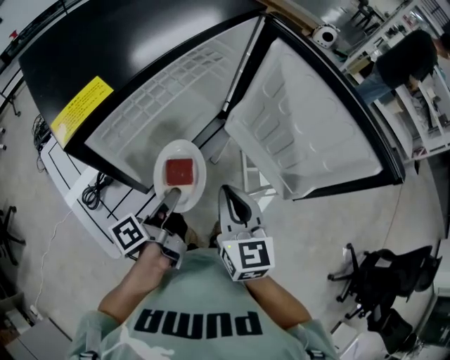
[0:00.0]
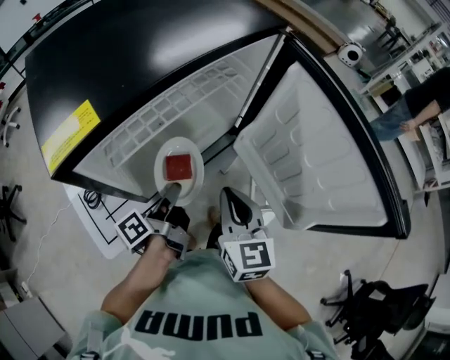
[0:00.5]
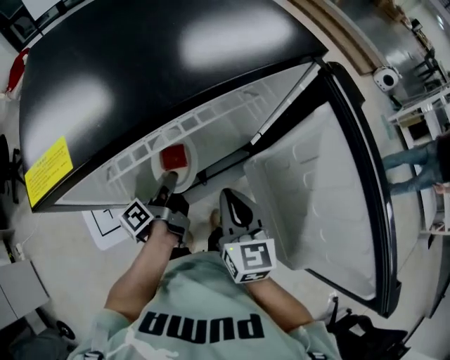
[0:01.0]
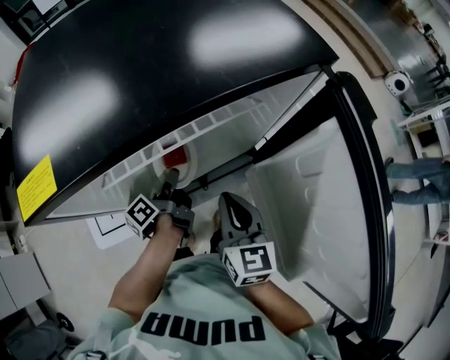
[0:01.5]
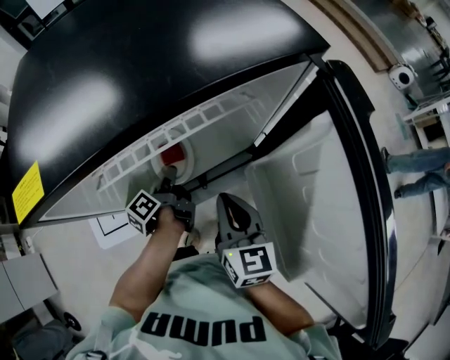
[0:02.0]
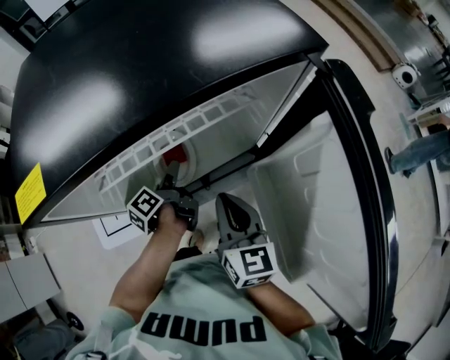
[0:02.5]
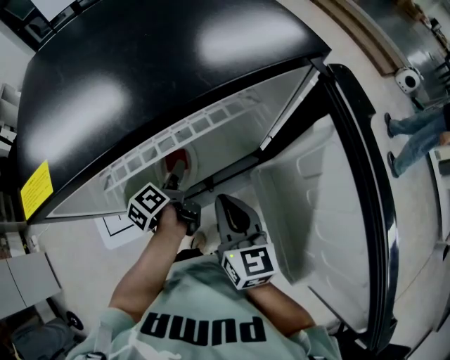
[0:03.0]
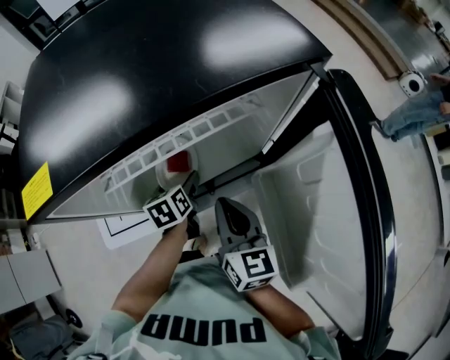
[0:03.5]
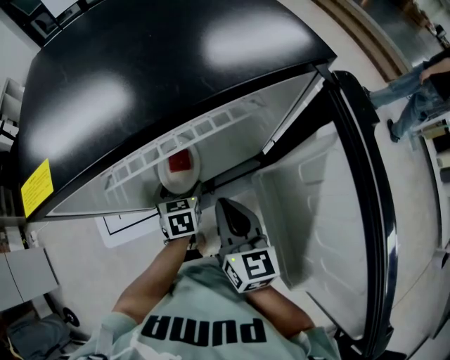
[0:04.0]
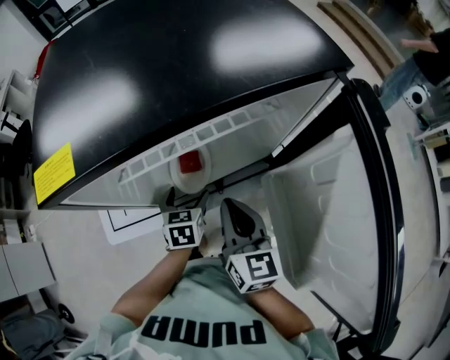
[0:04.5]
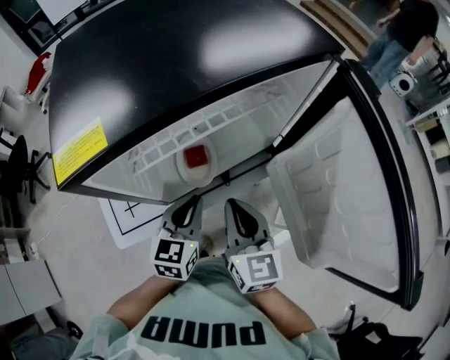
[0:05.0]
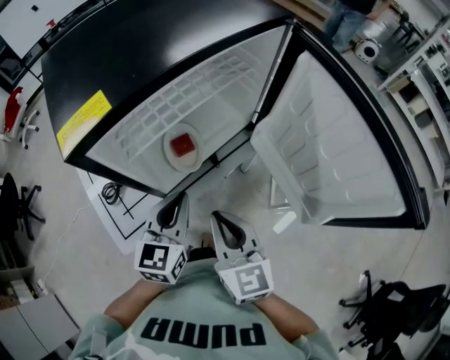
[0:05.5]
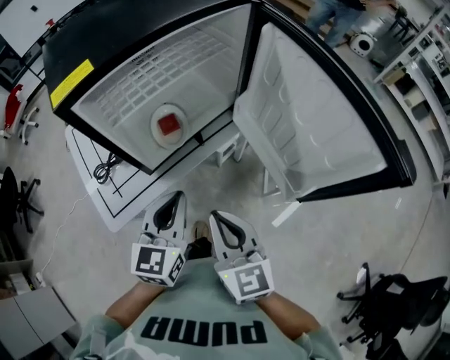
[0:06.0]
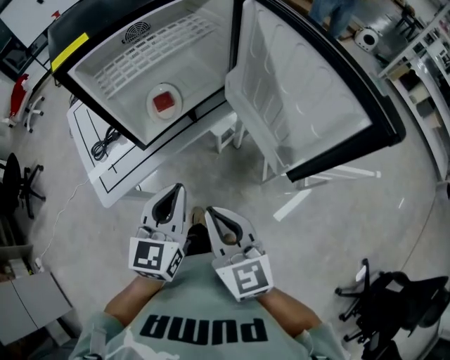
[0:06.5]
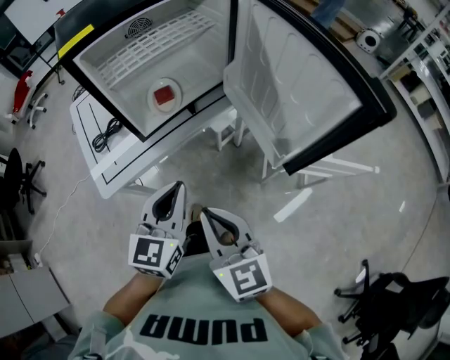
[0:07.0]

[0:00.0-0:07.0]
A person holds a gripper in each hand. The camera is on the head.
0:00.0 to 0:02.0: The right gripper changes place by roughly 15 cm, and turns by some 30 degrees, while the left gripper changes place by approximately 20 cm, and rotates some 40 degrees.
0:02.0 to 0:03.5: The left gripper rotates around the line of its fingers by some 50 degrees, clockwise from behind, and opens up.
0:03.5 to 0:05.0: The right gripper changes place by some 5 cm. Meanwhile the left gripper goes approximately 15 cm upward and backward, turns by about 40 degrees, and closes up.
0:05.0 to 0:07.0: Both grippers travel together backward, about 25 cm.

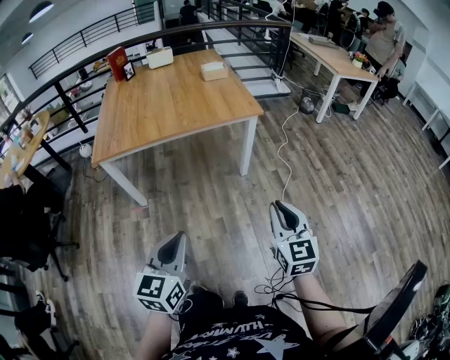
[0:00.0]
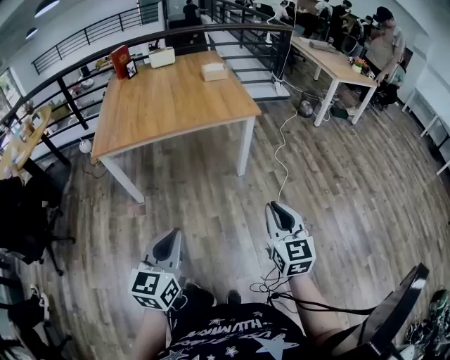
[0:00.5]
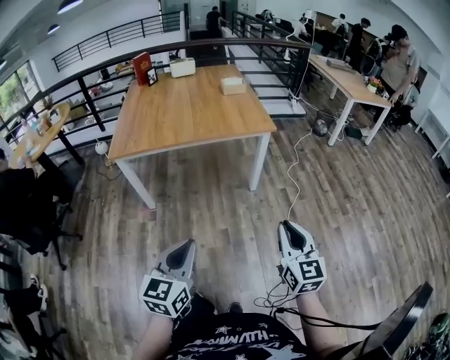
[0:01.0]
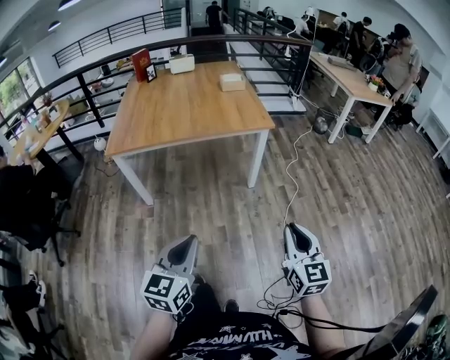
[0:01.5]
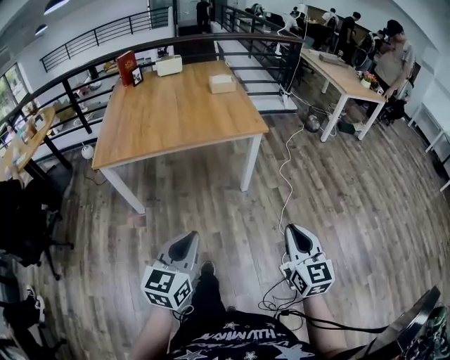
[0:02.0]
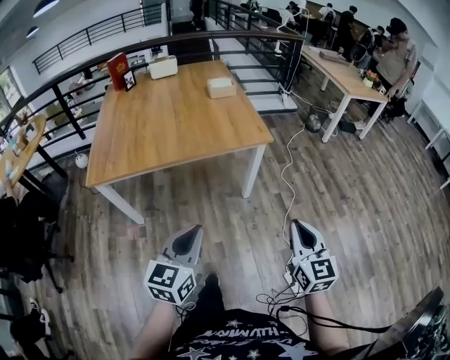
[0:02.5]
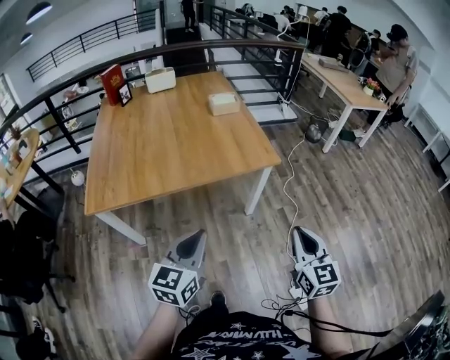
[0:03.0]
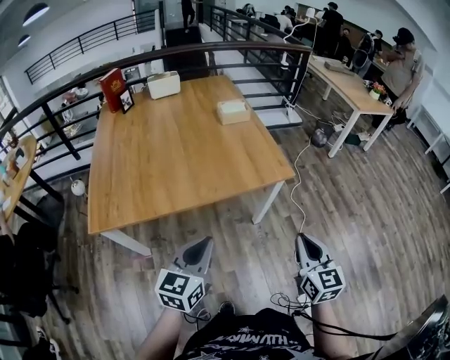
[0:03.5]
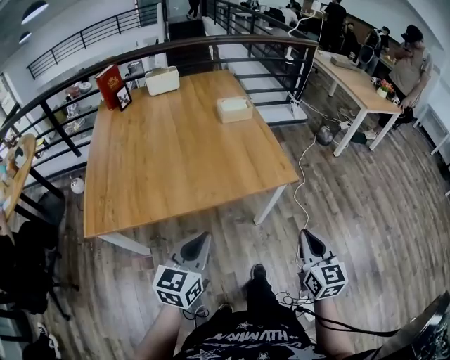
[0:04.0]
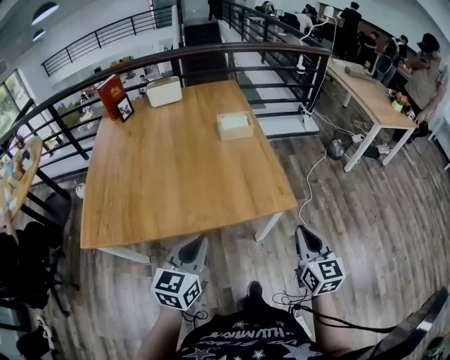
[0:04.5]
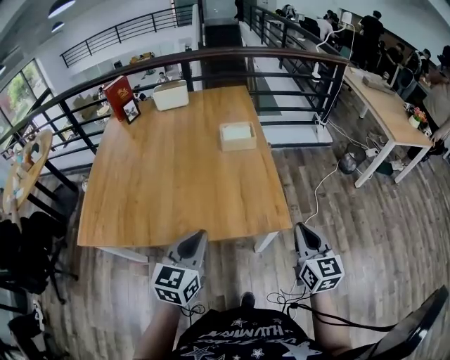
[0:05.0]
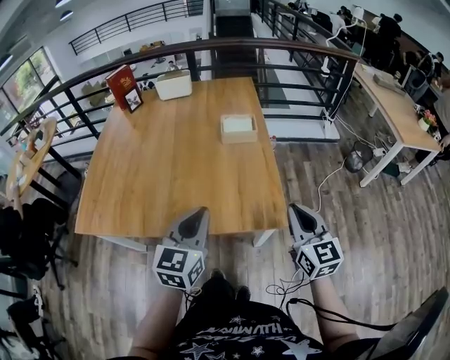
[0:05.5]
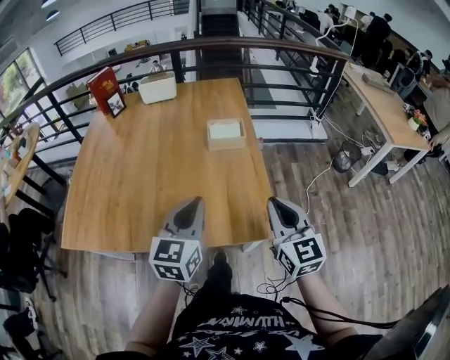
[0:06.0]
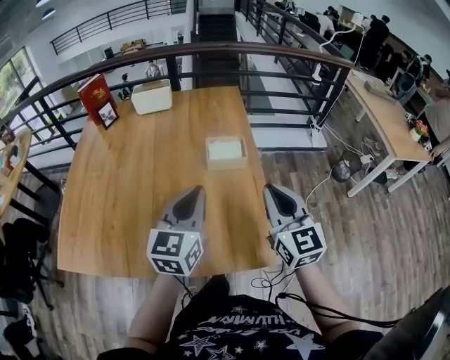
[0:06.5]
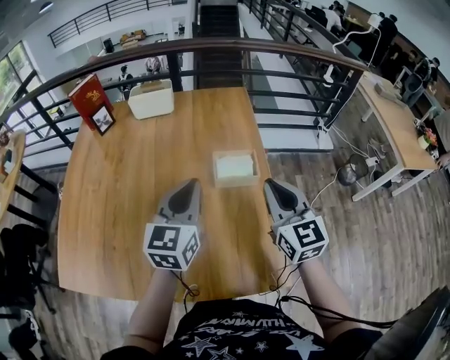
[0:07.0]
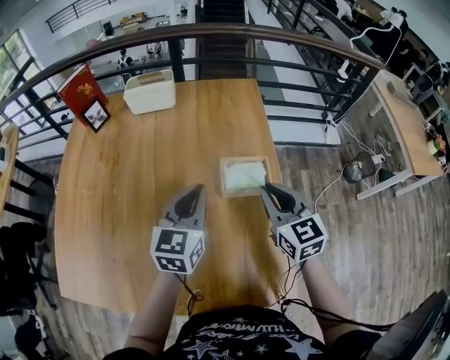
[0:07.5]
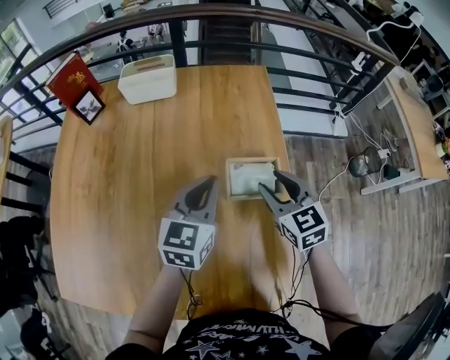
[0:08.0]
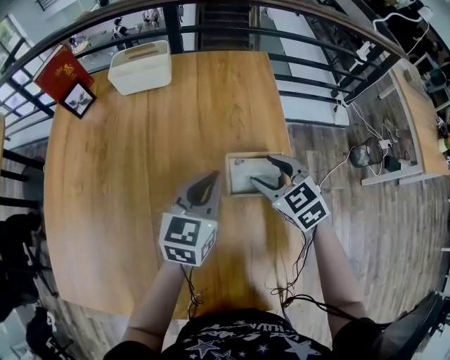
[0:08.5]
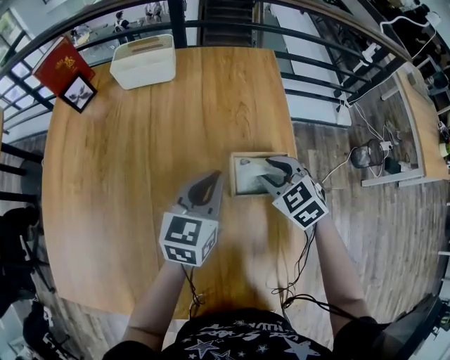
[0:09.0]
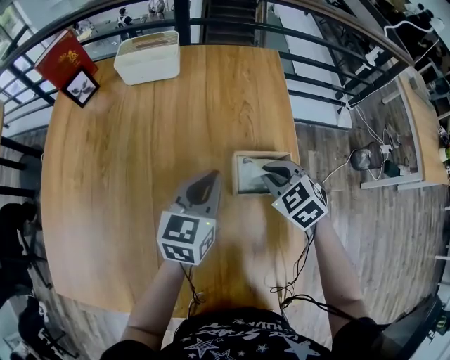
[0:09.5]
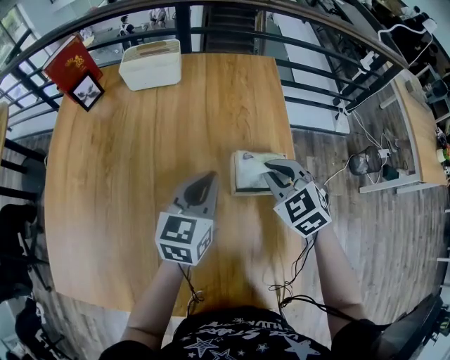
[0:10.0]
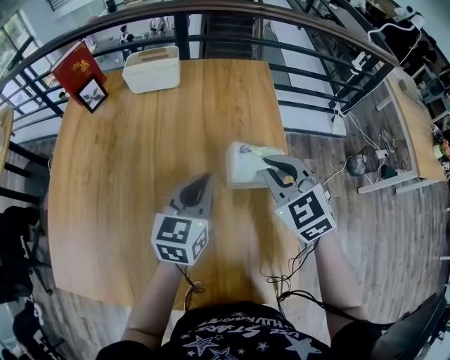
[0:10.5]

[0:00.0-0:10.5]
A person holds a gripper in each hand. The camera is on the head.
0:00.0 to 0:02.0: The left gripper moves forward, some 5 cm. The right gripper is displaced to the right by about 5 cm.
0:02.0 to 0:04.0: The two grippers travel together, forward, some 40 cm.
0:04.0 to 0:06.5: The pair of grippers is taken forward, about 50 cm. The right gripper swivels roughly 30 degrees.
0:06.5 to 0:08.5: Both grippers travel together forward and downward, approximately 40 cm. The right gripper points its fingers some 40 degrees further downward, and opens its fingers.
0:08.5 to 0:10.5: The right gripper moves upward and backward, some 10 cm, and closes up; the left gripper travels backward by some 5 cm.

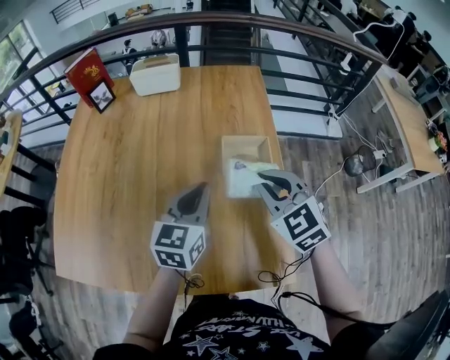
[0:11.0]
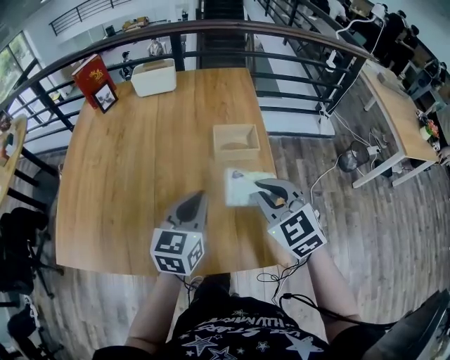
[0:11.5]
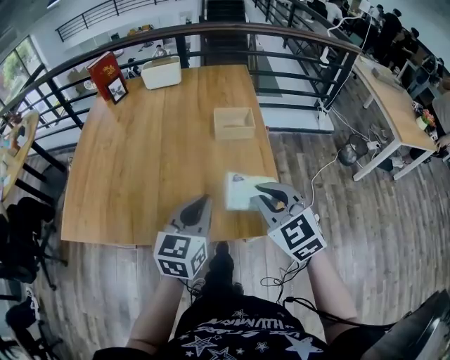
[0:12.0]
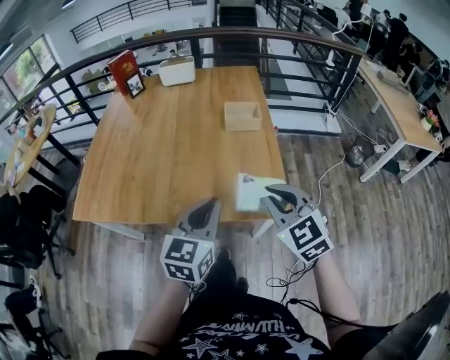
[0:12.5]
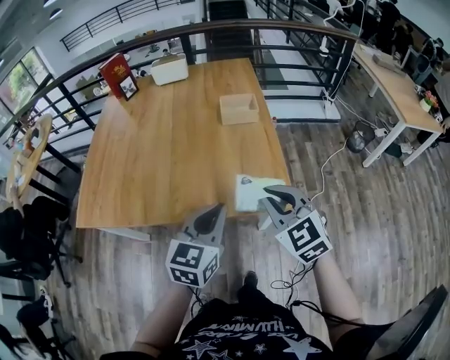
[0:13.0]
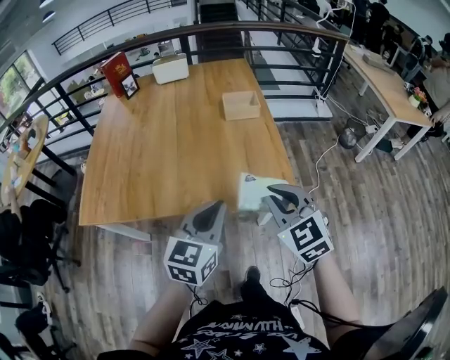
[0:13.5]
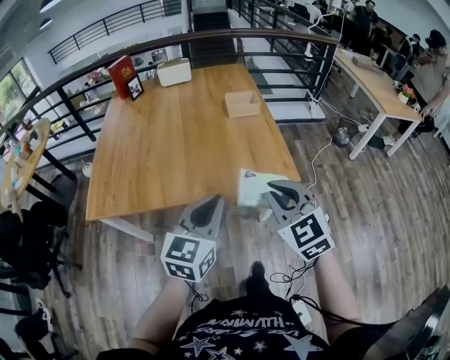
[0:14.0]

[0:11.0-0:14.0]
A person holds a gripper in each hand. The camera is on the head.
0:11.0 to 0:12.5: The grippers both shift backward by approximately 40 cm.
0:12.5 to 0:14.0: The two grippers go roughly 20 cm backward and to the left.

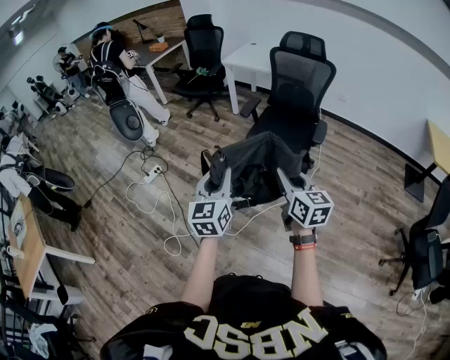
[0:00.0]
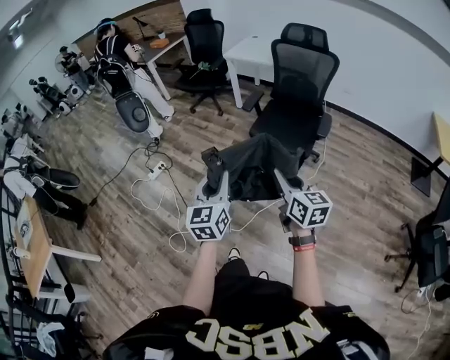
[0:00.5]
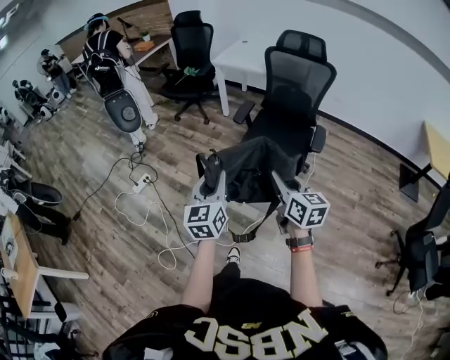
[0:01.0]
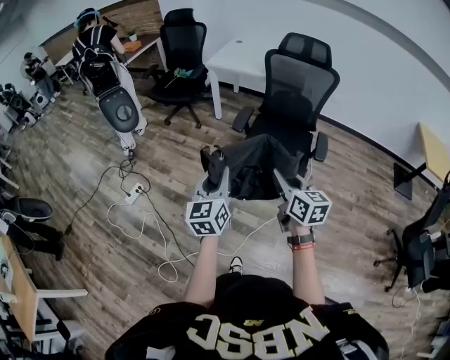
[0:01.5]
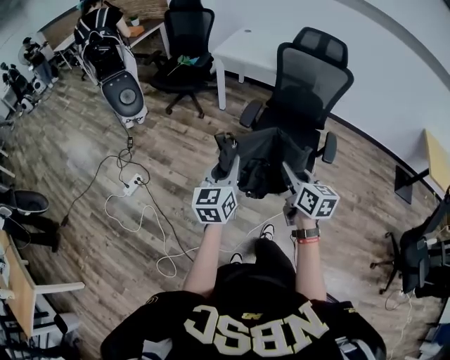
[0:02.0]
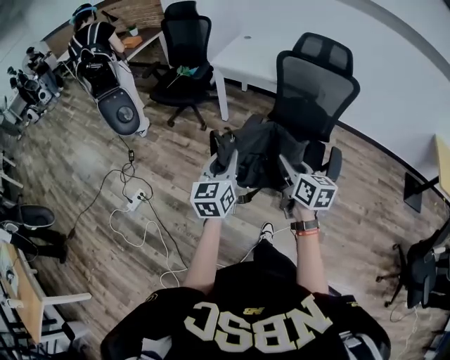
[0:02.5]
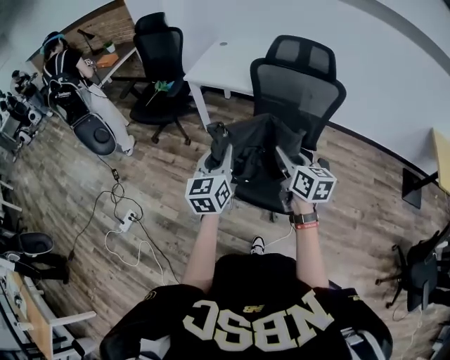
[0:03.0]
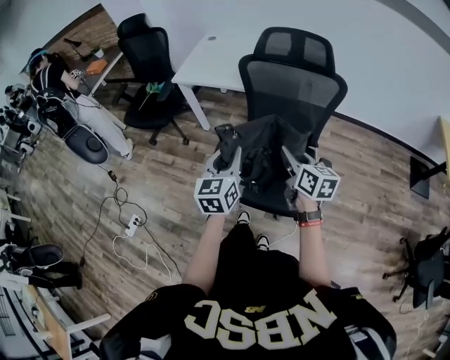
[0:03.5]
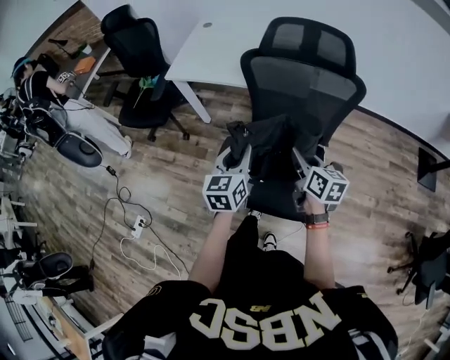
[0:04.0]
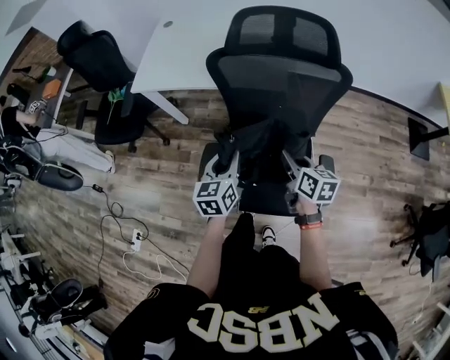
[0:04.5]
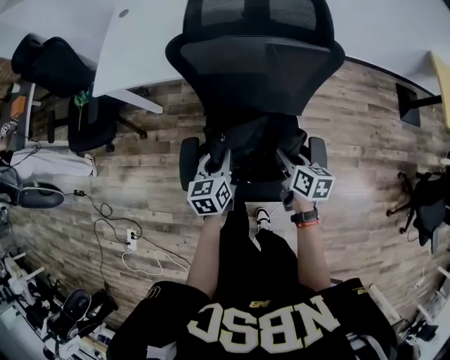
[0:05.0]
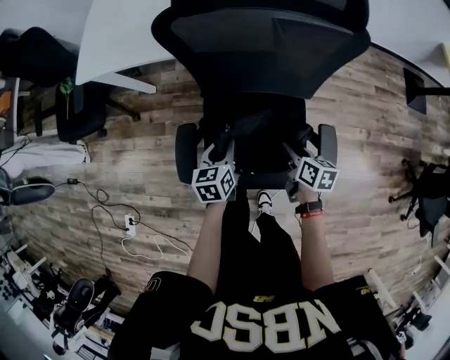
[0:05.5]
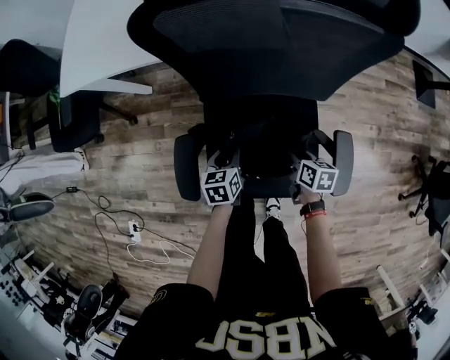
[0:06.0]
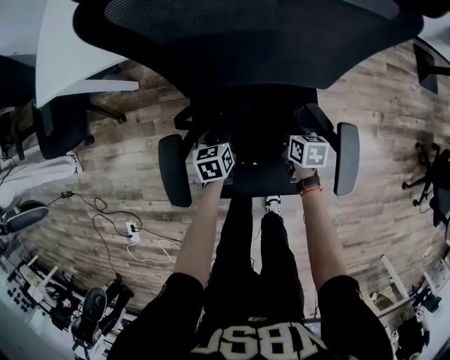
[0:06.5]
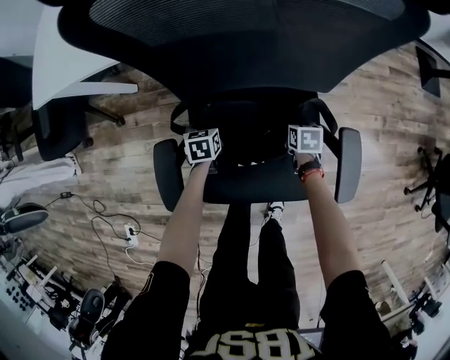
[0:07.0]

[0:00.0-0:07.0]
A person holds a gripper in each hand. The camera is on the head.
0:00.0 to 0:02.0: The grippers both shift forward by roughly 30 cm.
0:02.0 to 0:03.5: Both grippers move forward and to the right, roughly 40 cm.
0:03.5 to 0:05.0: The right gripper shifts about 20 cm downward, forward and to the right, and turns by some 30 degrees. The left gripper is displaced downward and forward by about 25 cm, and turns by about 30 degrees.
0:05.0 to 0:07.0: The grippers both shift downward by roughly 35 cm. The right gripper tips its fingers downward by about 30 degrees. The left gripper swivels some 30 degrees.
